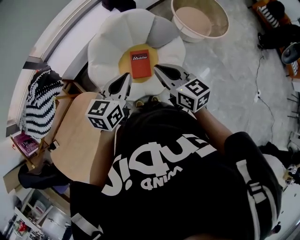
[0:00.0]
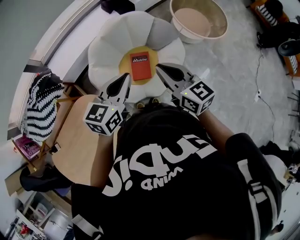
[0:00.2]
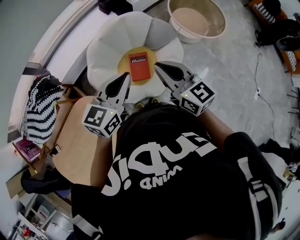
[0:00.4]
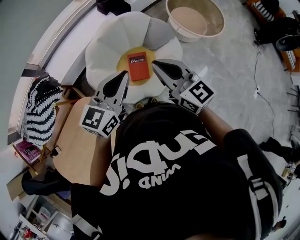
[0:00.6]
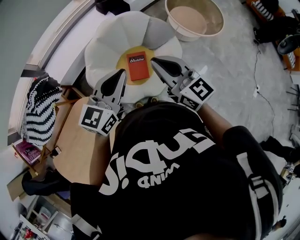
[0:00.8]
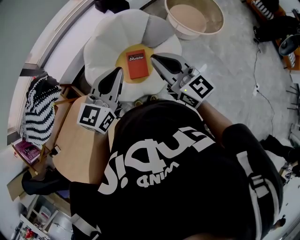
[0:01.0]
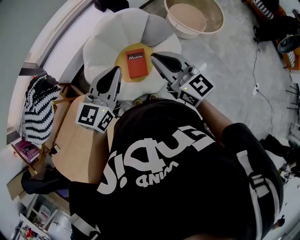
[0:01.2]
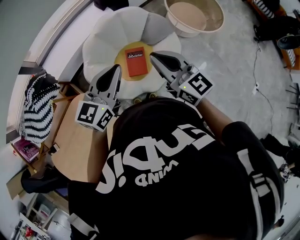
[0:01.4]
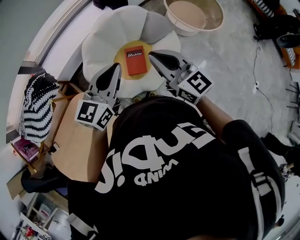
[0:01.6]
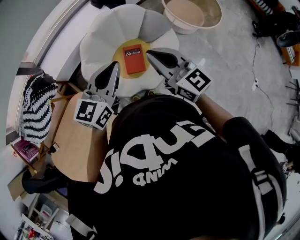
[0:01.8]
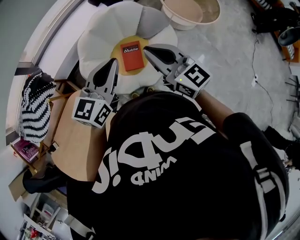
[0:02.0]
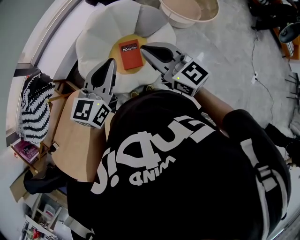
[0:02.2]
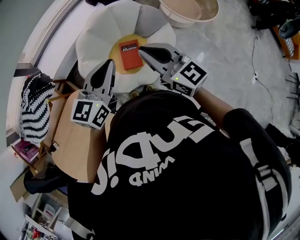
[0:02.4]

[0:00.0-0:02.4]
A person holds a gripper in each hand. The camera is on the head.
0:00.0 to 0:01.2: The grippers both shift upward by approximately 5 cm.
0:01.2 to 0:02.4: There are only small adjustments of the grippers.

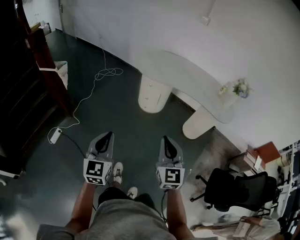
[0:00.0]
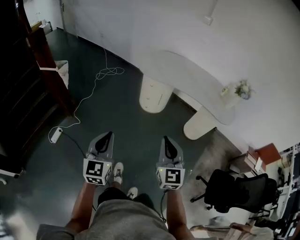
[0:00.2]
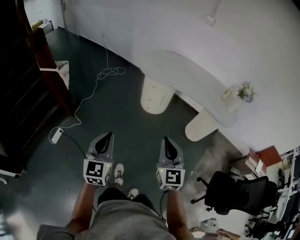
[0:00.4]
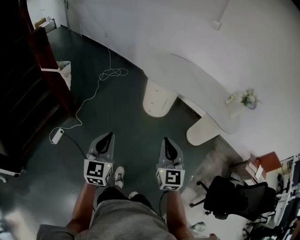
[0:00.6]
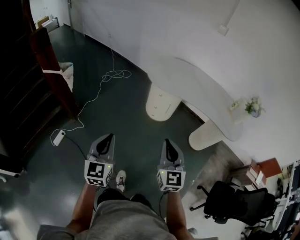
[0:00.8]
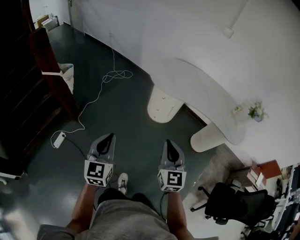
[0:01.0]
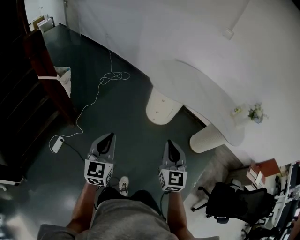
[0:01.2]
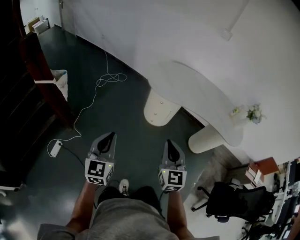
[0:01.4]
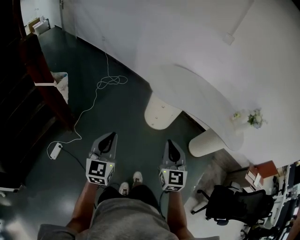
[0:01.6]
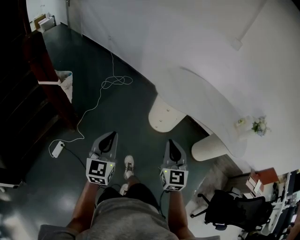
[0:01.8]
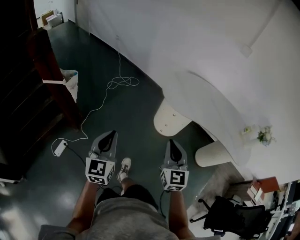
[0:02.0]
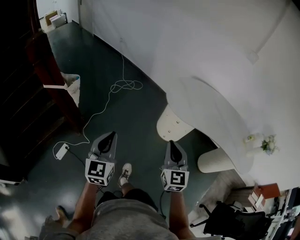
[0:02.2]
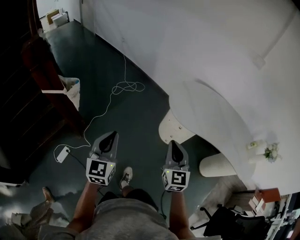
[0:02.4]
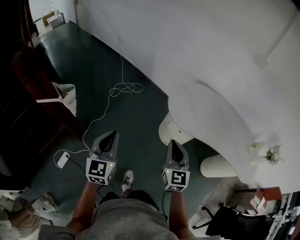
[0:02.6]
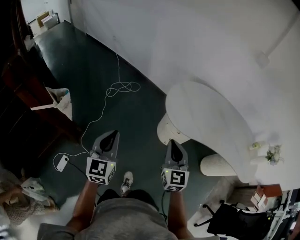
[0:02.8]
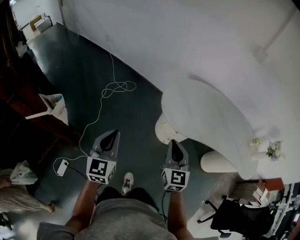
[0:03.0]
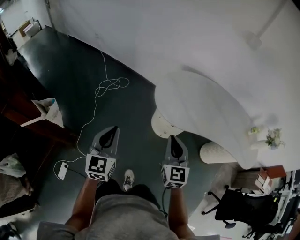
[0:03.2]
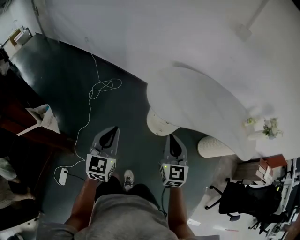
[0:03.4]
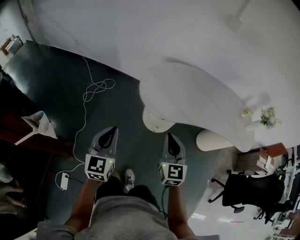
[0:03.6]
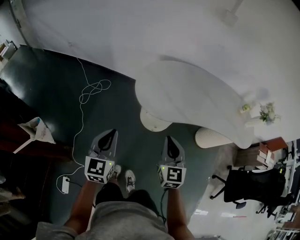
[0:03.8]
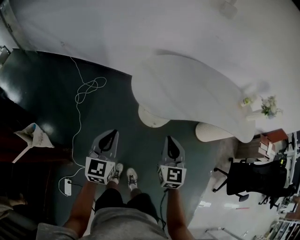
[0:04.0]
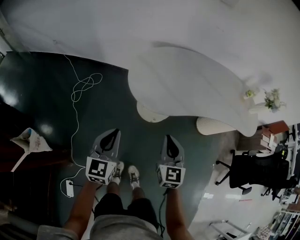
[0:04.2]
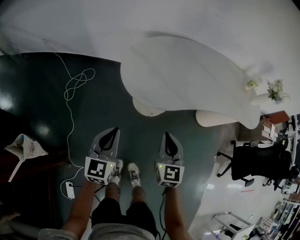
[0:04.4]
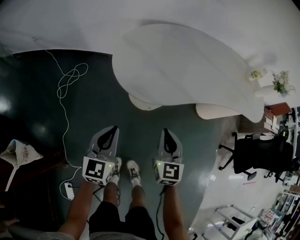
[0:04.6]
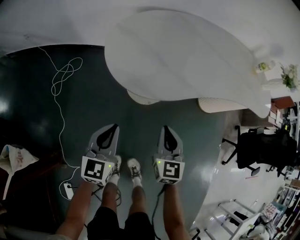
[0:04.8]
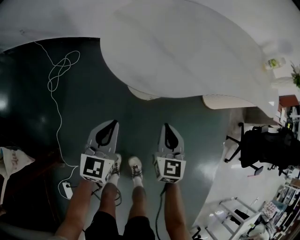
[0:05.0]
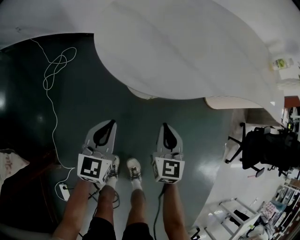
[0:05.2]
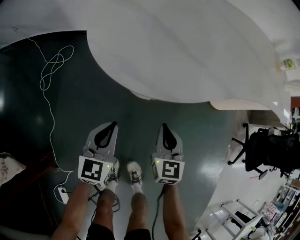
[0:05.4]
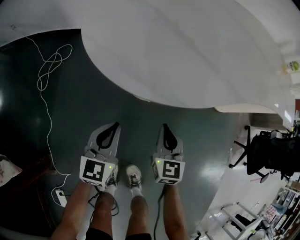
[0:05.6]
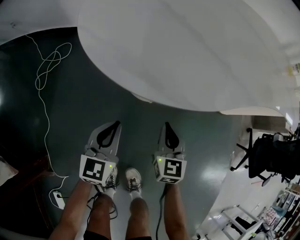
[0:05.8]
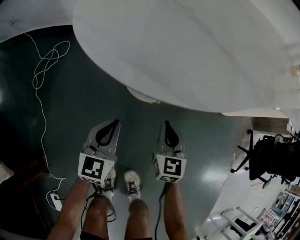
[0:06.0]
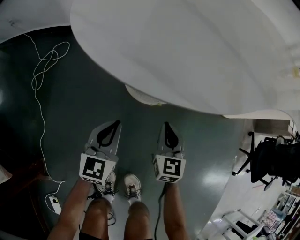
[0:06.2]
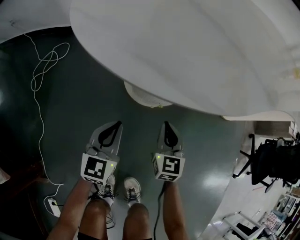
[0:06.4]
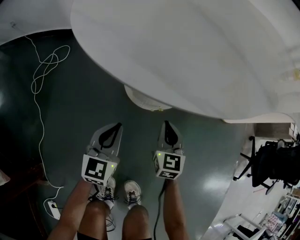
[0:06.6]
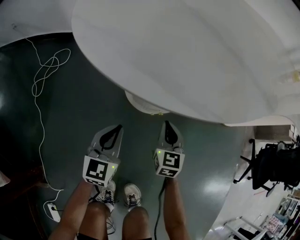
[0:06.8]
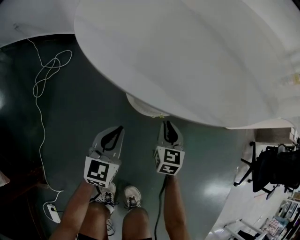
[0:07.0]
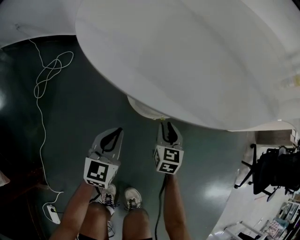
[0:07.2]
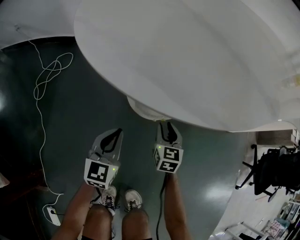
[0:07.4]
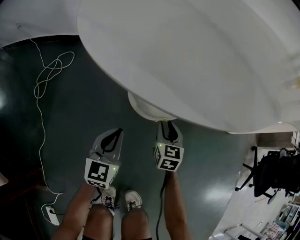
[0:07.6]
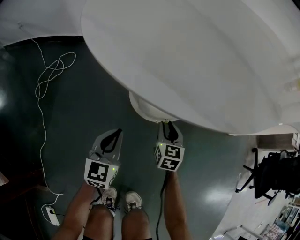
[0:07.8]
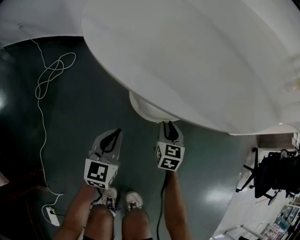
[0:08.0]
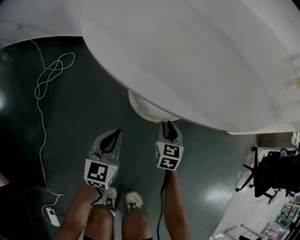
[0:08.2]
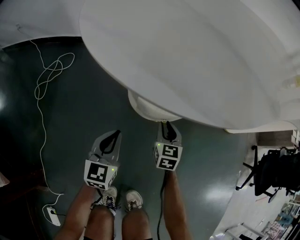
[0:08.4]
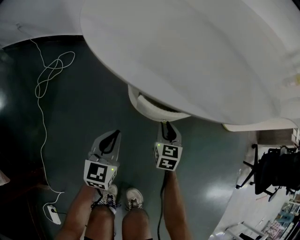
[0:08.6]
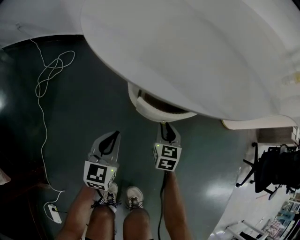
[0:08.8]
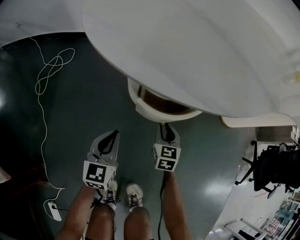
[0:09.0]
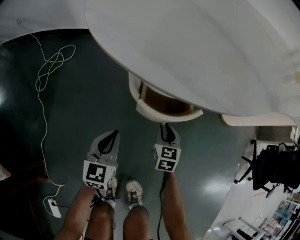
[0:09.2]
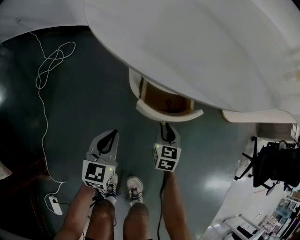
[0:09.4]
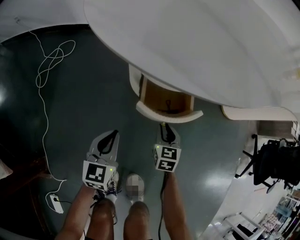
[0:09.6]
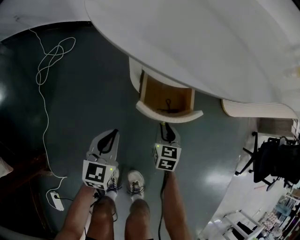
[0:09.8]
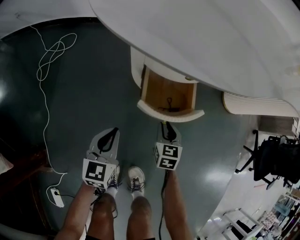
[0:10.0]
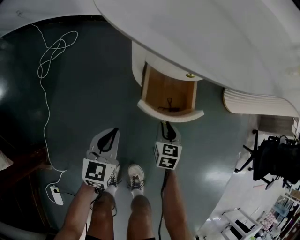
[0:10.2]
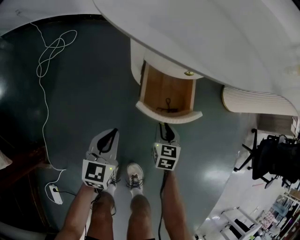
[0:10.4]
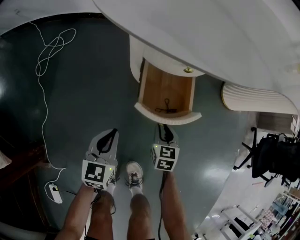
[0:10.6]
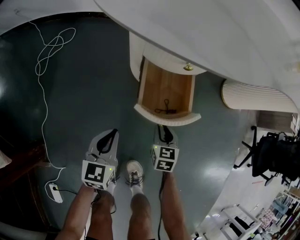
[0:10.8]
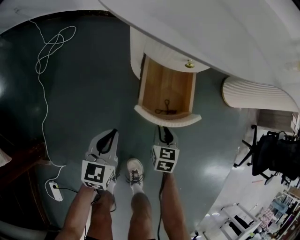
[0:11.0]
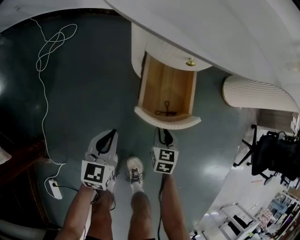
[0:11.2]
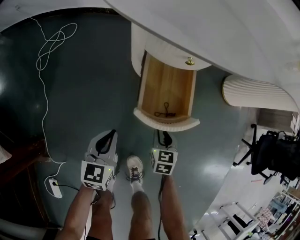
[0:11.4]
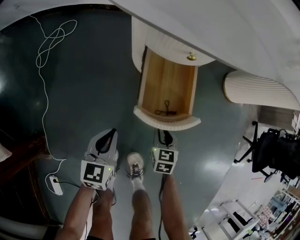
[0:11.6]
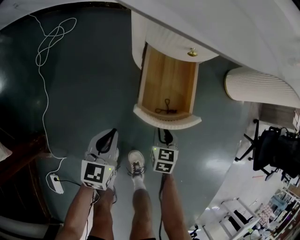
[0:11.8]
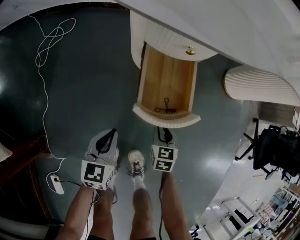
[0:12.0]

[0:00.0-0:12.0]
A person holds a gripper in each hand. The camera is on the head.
0:00.0 to 0:01.6: Both grippers travel together forward and to the left, approximately 30 cm.
0:01.6 to 0:03.0: Both grippers move forward, about 30 cm.
0:03.0 to 0:04.4: The right gripper is displaced downward by some 15 cm, and changes its angle by some 30 degrees. Meanwhile the left gripper changes place by roughly 20 cm, and turns by roughly 30 degrees.
0:04.4 to 0:06.0: Both grippers travel together downward, some 40 cm.
0:06.0 to 0:07.6: The left gripper travels downward by some 10 cm, while the right gripper is displaced downward and forward by roughly 15 cm, and opens its fingers.
0:07.6 to 0:09.0: The grippers make only small movements.
0:09.0 to 0:10.4: Both grippers move backward, approximately 10 cm.
0:10.4 to 0:12.0: The two grippers go approximately 5 cm backward.

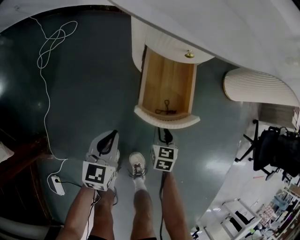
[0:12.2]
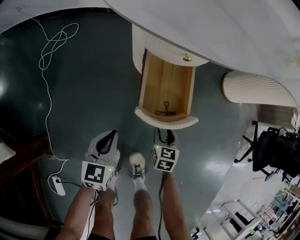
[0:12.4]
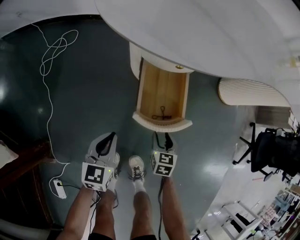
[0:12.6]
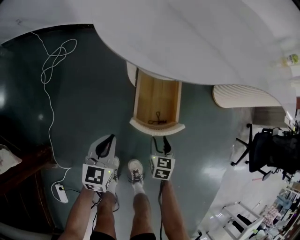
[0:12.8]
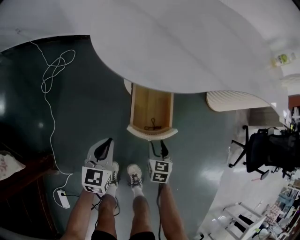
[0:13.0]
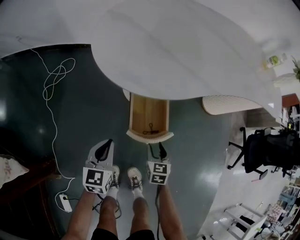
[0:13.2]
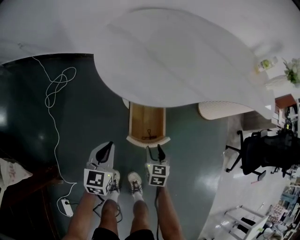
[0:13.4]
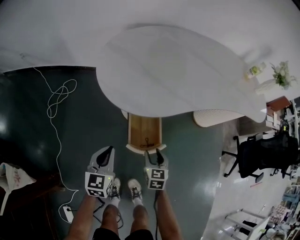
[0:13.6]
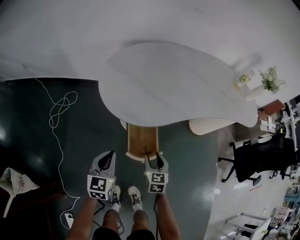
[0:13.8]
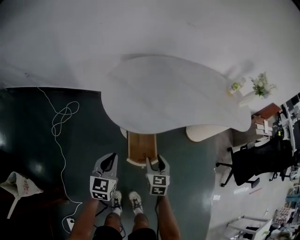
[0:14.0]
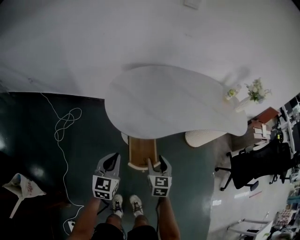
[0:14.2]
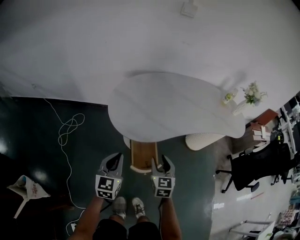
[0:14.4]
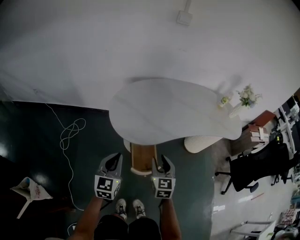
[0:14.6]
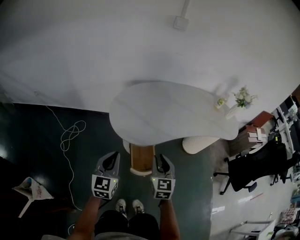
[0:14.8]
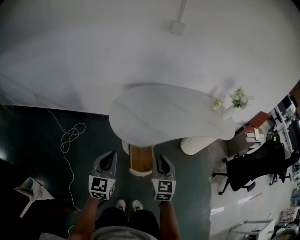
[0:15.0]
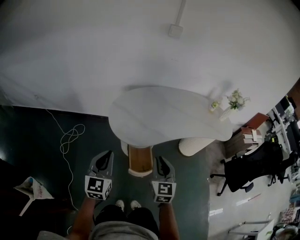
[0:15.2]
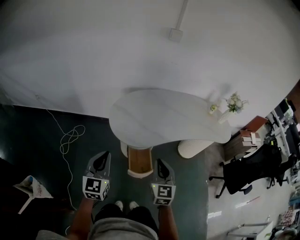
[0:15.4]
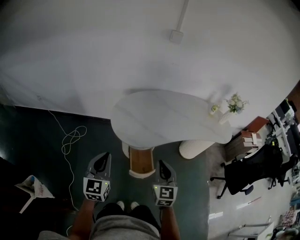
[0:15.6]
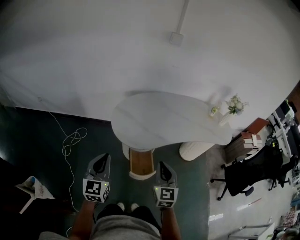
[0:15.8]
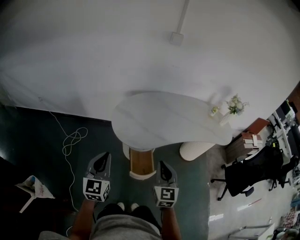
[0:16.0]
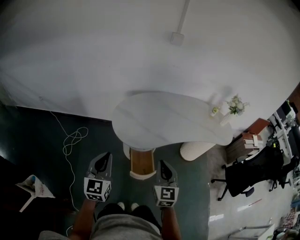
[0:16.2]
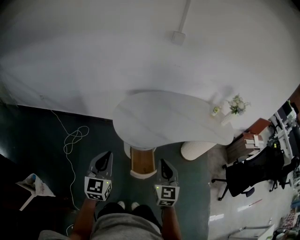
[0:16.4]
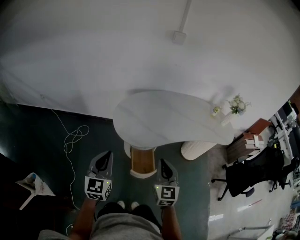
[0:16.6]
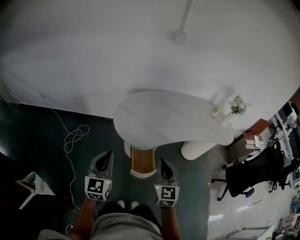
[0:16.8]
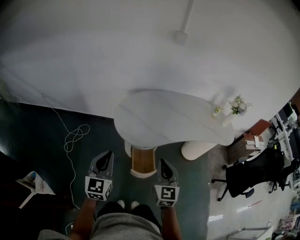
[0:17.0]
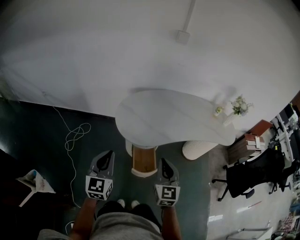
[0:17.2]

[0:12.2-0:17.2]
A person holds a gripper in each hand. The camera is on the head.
0:12.2 to 0:13.8: Both grippers move upward, some 30 cm. The right gripper opens.
0:13.8 to 0:15.6: Both grippers move upward, some 35 cm. The right gripper changes its angle by about 30 degrees, and closes.
0:15.6 to 0:17.2: The grippers move only a little.

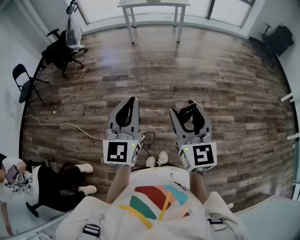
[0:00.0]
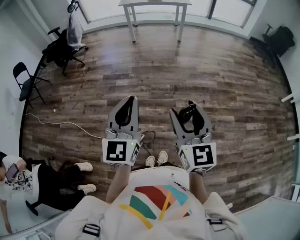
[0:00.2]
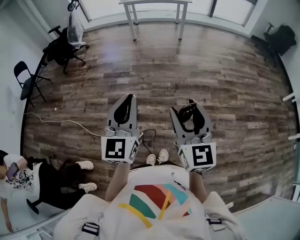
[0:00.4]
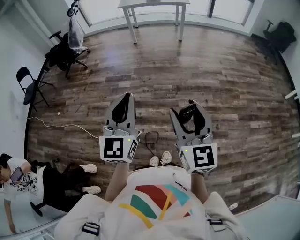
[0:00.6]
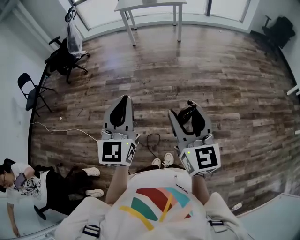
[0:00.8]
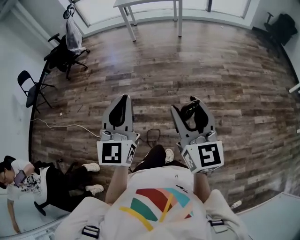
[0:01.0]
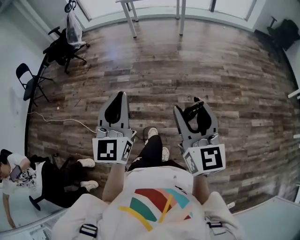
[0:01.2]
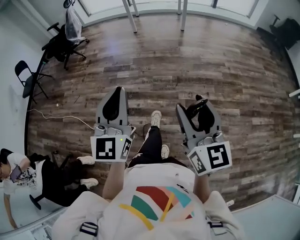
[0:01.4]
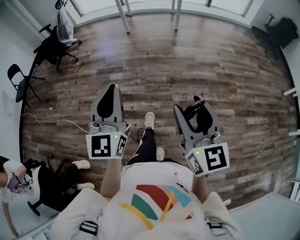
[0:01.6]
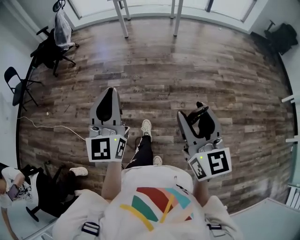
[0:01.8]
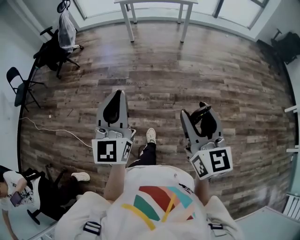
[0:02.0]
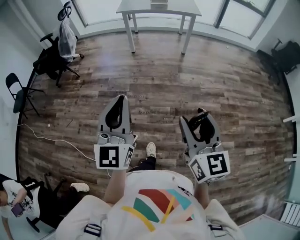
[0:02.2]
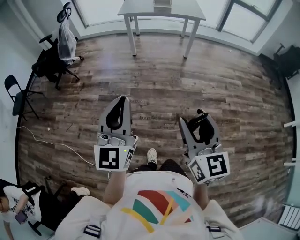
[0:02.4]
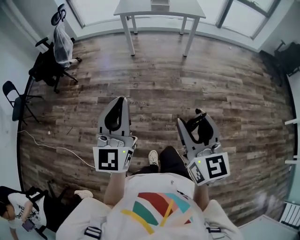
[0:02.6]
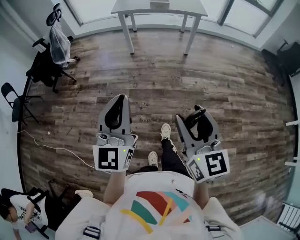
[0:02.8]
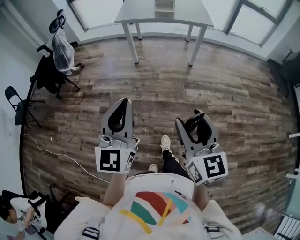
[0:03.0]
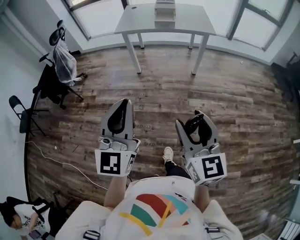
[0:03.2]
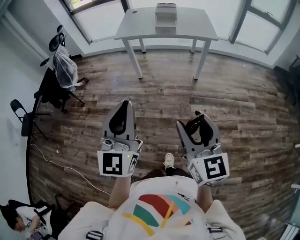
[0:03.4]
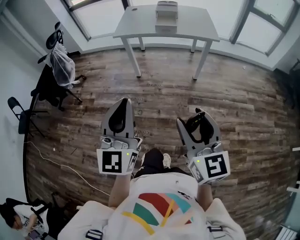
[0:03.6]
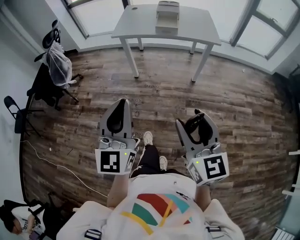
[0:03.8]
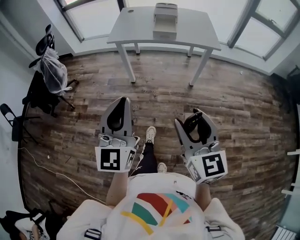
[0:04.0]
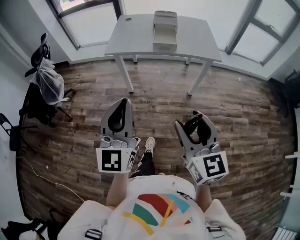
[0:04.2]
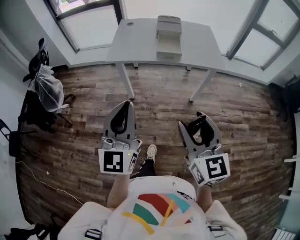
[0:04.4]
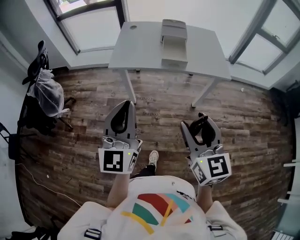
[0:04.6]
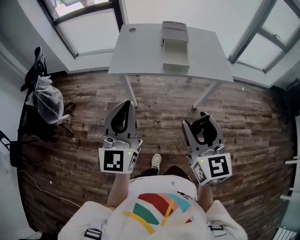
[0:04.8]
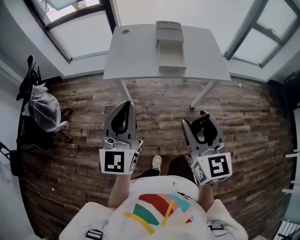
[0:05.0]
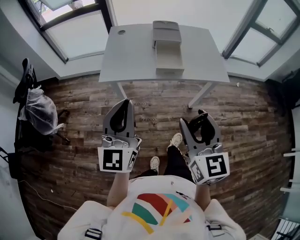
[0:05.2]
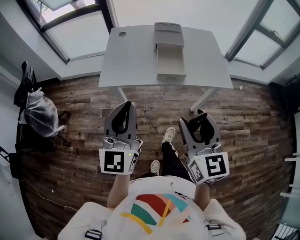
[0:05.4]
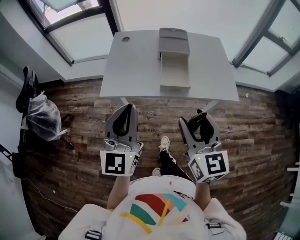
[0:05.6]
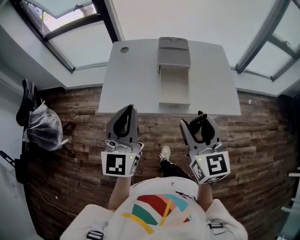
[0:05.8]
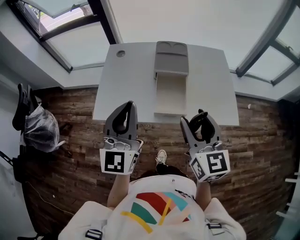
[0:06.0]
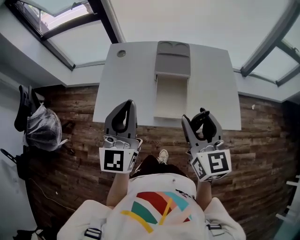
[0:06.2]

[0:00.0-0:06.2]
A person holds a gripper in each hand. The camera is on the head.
0:00.0 to 0:01.6: The right gripper is displaced to the right by roughly 5 cm. Meanwhile the left gripper goes roughly 10 cm forward.
0:01.6 to 0:03.2: The two grippers travel together, forward, some 60 cm.
0:03.2 to 0:04.6: The two grippers travel together, forward, some 40 cm.
0:04.6 to 0:06.2: Both grippers travel together forward, about 40 cm.
